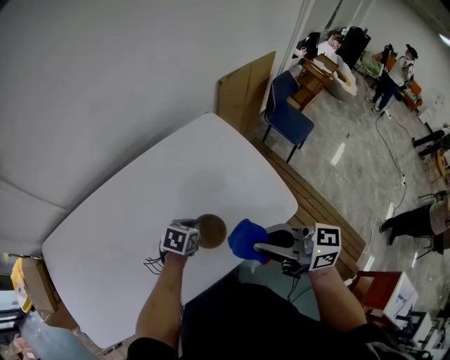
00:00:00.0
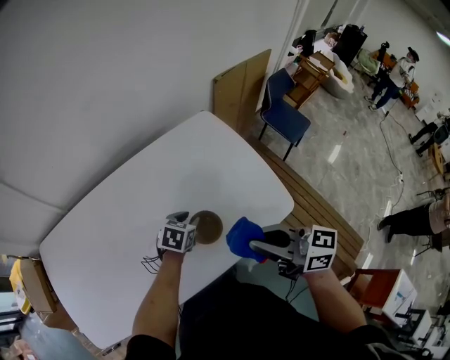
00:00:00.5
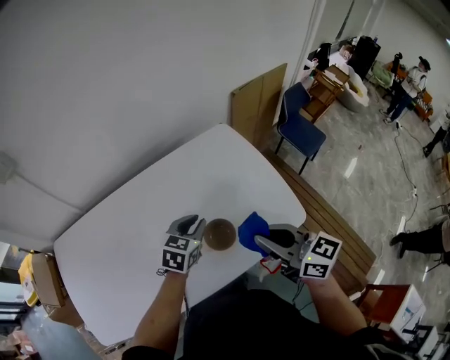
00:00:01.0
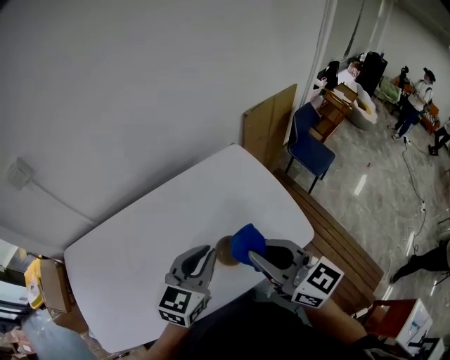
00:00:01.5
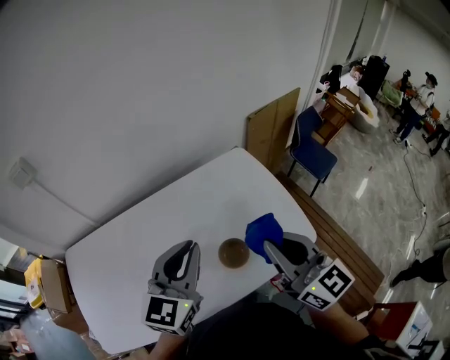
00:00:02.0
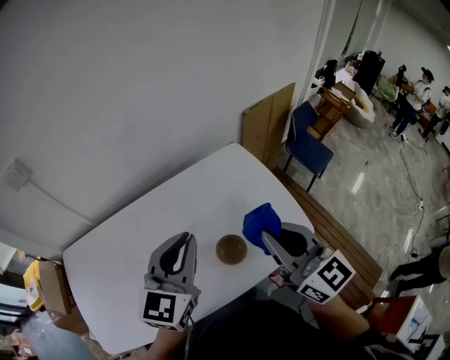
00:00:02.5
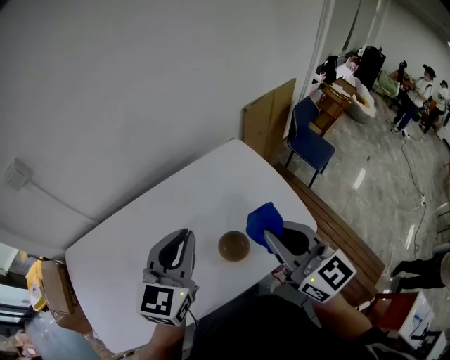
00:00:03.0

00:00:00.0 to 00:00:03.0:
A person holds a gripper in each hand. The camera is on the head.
00:00:00.0 to 00:00:01.5: The right gripper goes roughly 5 cm upward, and rotates some 30 degrees. Meanwhile the left gripper moves upward, roughly 25 cm, tilts its fingers roughly 30 degrees upward, and opens, then closes again.
00:00:01.5 to 00:00:03.0: The left gripper moves upward and to the left, roughly 10 cm.

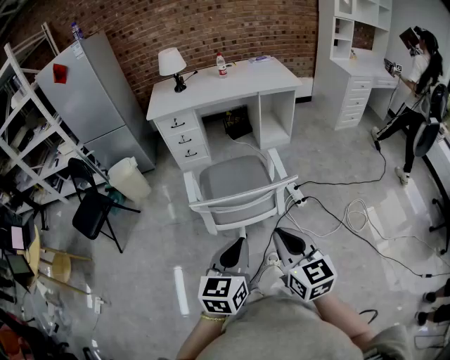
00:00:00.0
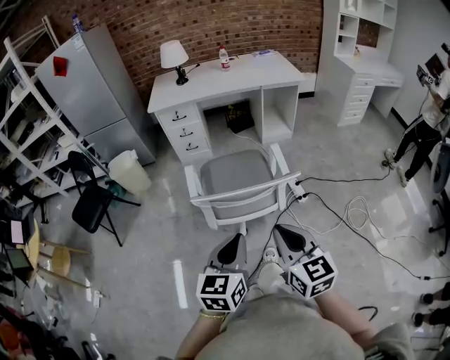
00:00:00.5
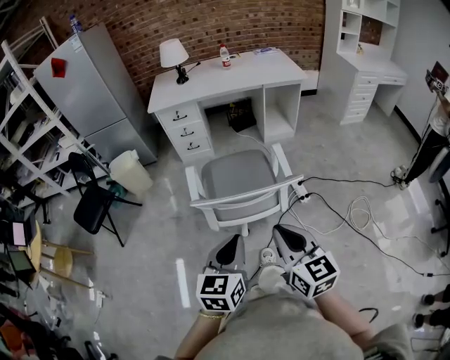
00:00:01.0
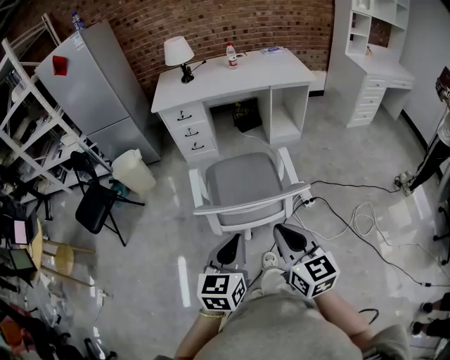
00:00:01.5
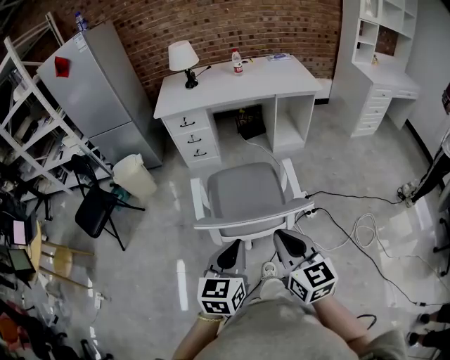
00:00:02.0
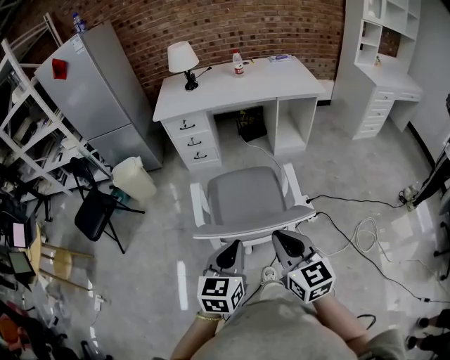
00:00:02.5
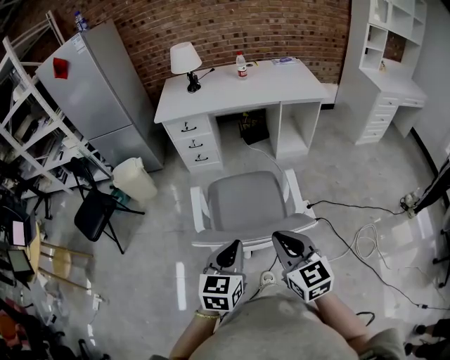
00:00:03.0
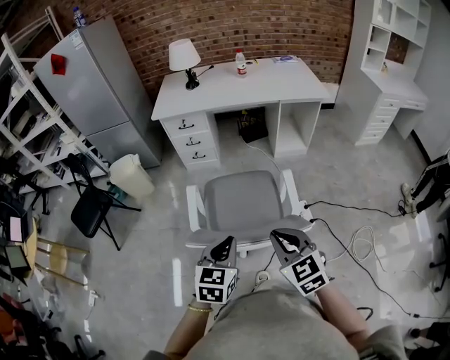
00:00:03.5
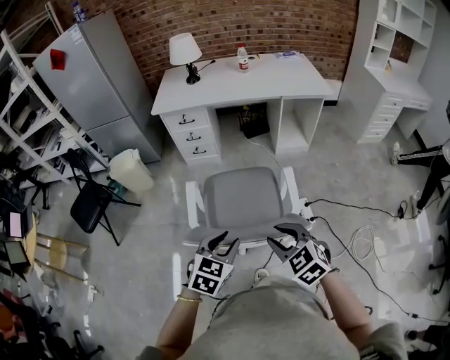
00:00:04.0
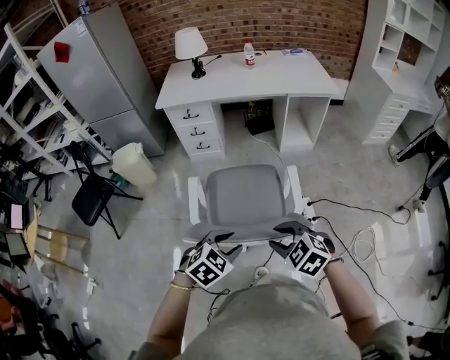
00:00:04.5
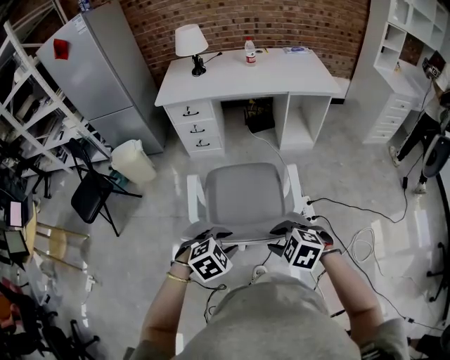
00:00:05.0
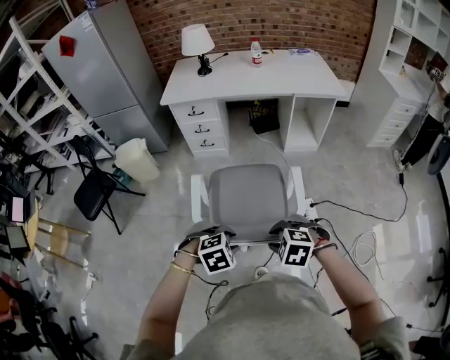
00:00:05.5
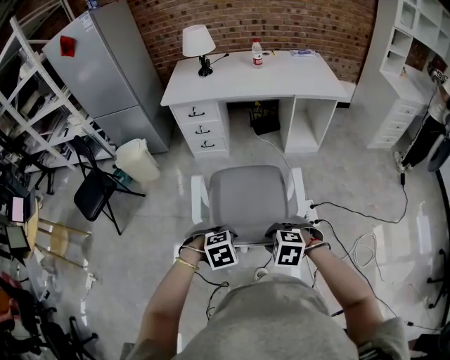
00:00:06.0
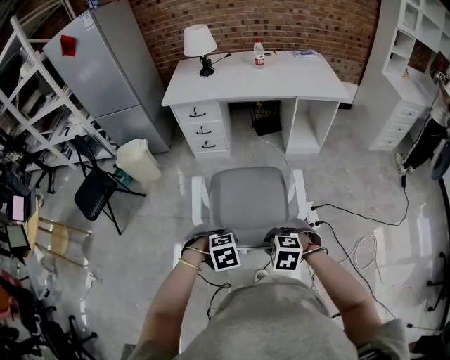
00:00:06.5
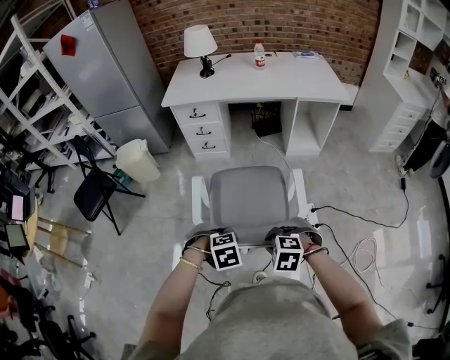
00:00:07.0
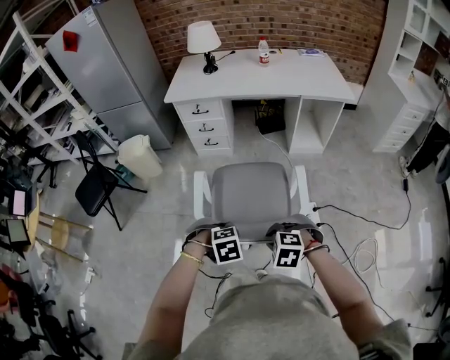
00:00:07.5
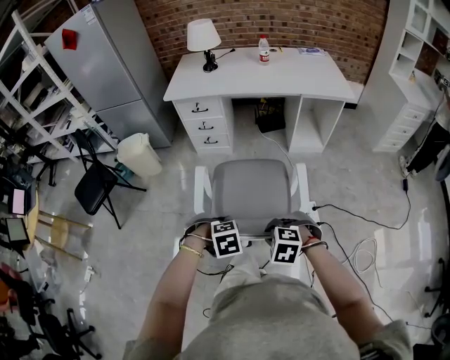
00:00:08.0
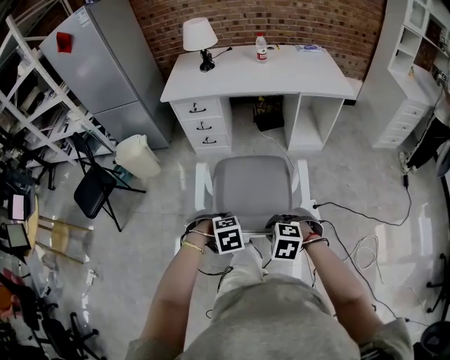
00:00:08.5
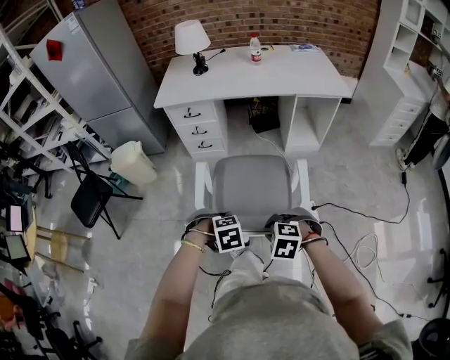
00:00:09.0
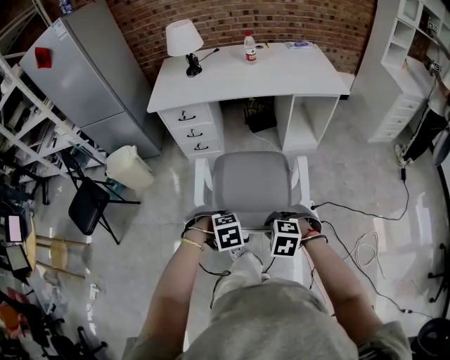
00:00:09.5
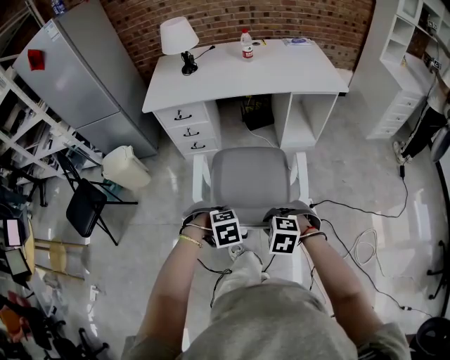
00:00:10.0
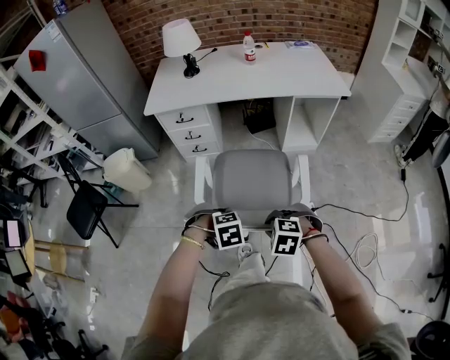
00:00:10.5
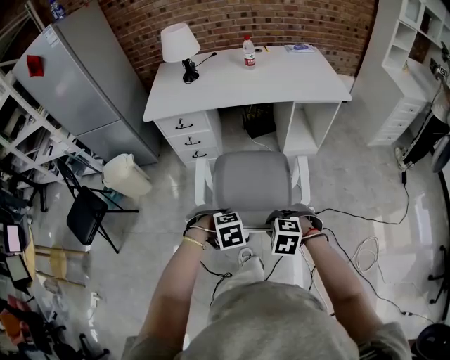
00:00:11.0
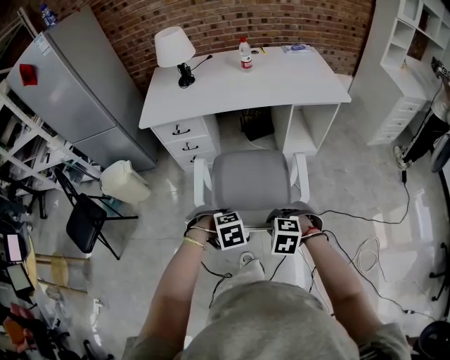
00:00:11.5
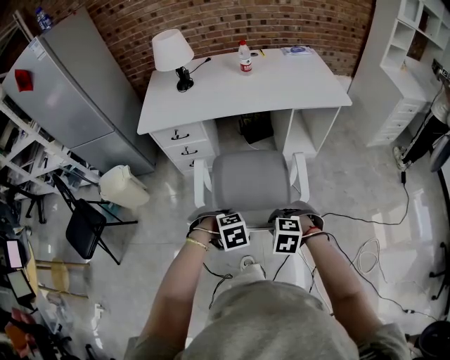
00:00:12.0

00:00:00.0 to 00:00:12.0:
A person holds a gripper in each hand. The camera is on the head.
00:00:00.0 to 00:00:02.0: Both grippers move forward, approximately 10 cm.
00:00:02.0 to 00:00:04.0: Both grippers move forward and downward, roughly 10 cm. The right gripper changes its angle by roughly 40 degrees, and opens up. Meanwhile the left gripper swivels about 30 degrees, and opens.
00:00:04.0 to 00:00:06.0: Both grippers move downward, some 10 cm. The right gripper changes its angle by some 40 degrees. Meanwhile the left gripper tips its fingers downward by some 40 degrees.
00:00:06.0 to 00:00:08.0: The grippers make only small movements.
00:00:08.0 to 00:00:10.0: The right gripper moves some 10 cm; the left gripper changes place by roughly 10 cm.
00:00:10.0 to 00:00:12.0: The left gripper moves some 10 cm. Meanwhile the right gripper ends up some 10 cm from where it was.

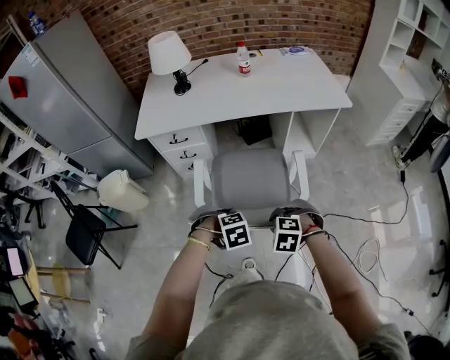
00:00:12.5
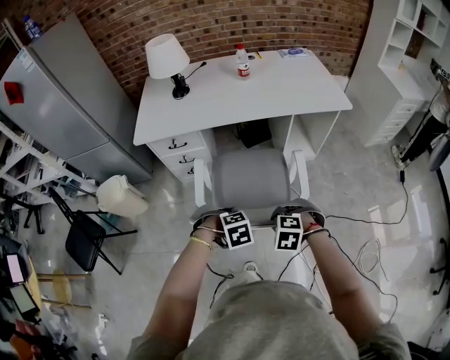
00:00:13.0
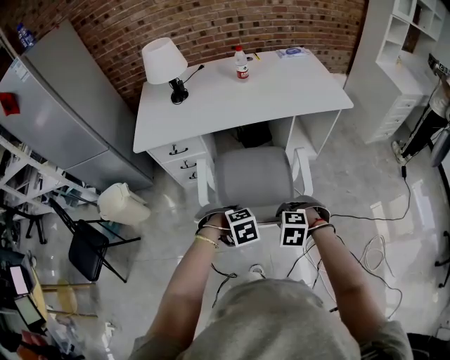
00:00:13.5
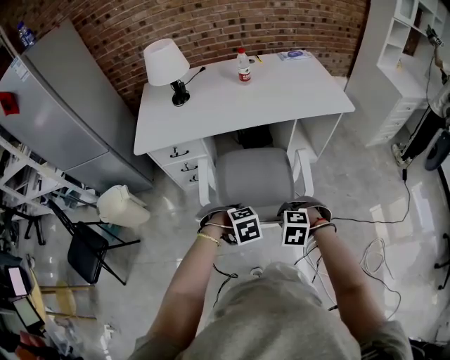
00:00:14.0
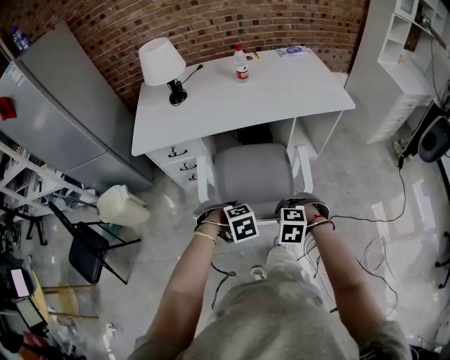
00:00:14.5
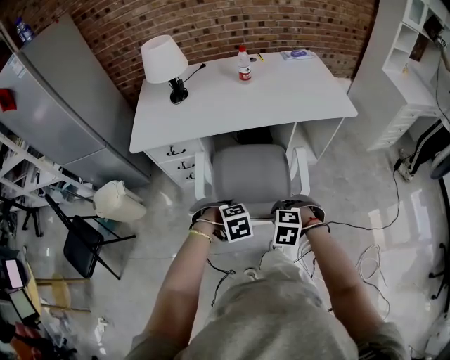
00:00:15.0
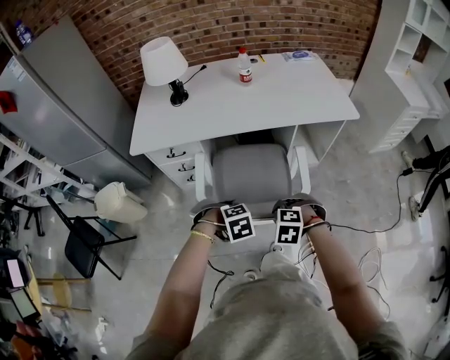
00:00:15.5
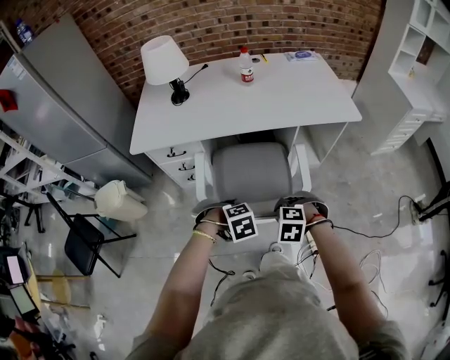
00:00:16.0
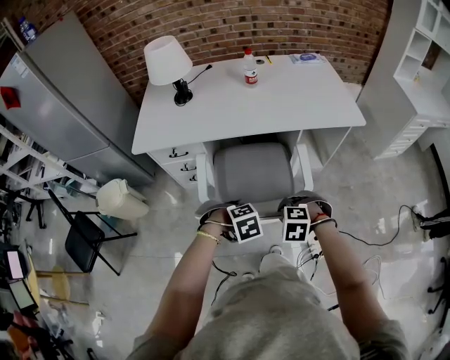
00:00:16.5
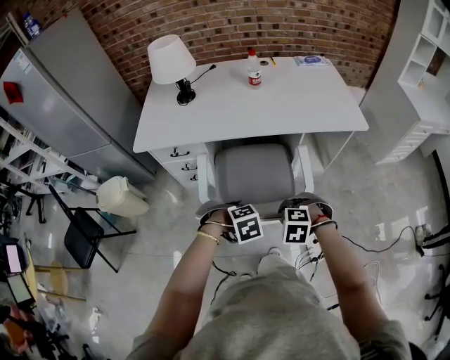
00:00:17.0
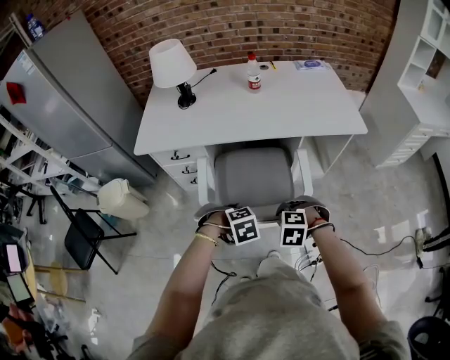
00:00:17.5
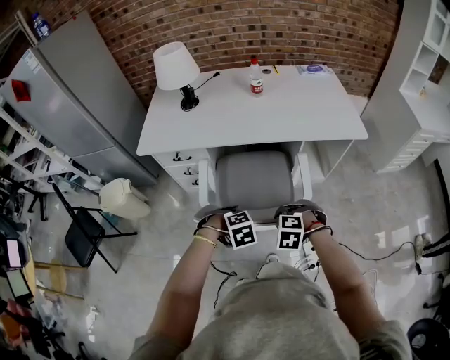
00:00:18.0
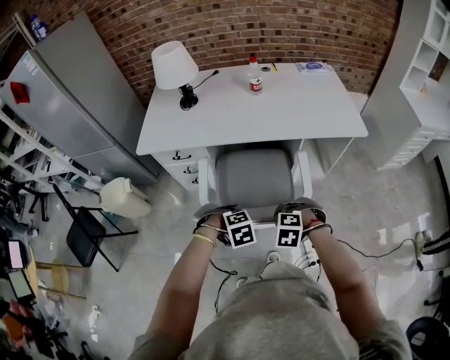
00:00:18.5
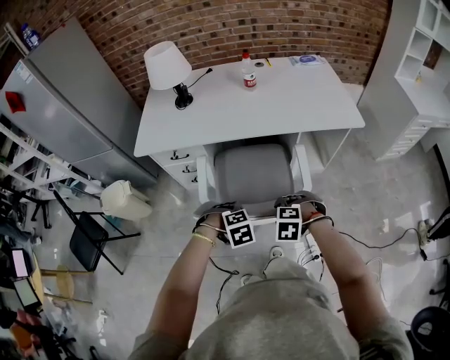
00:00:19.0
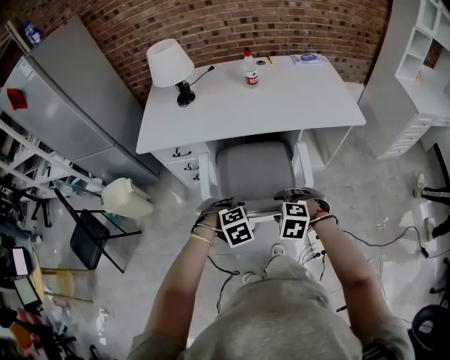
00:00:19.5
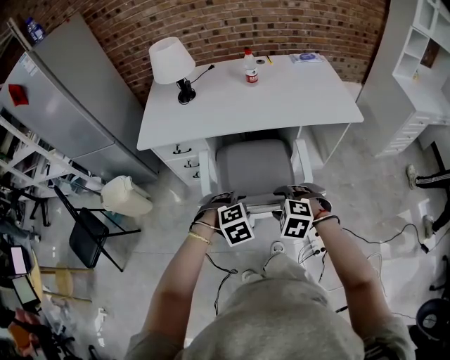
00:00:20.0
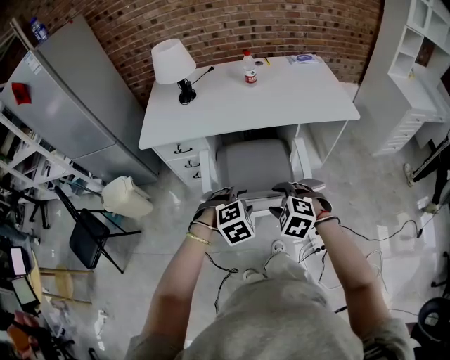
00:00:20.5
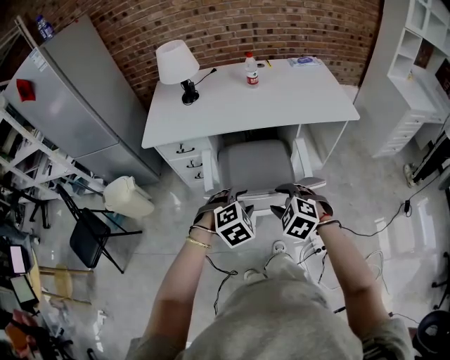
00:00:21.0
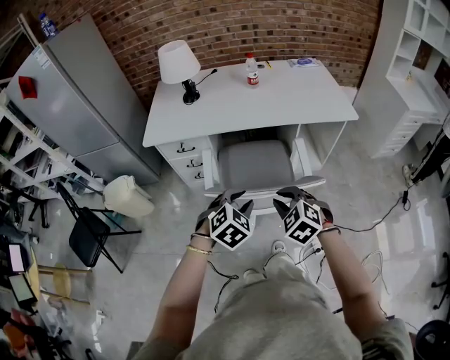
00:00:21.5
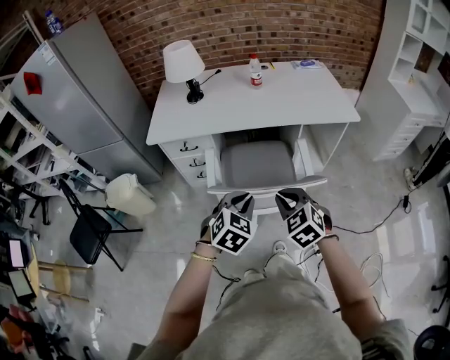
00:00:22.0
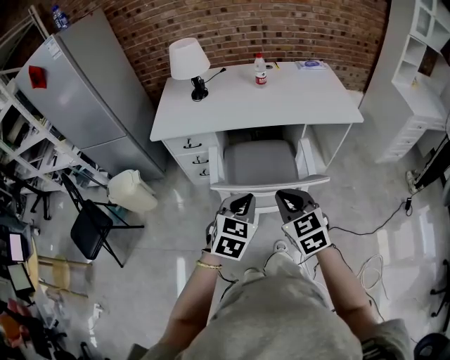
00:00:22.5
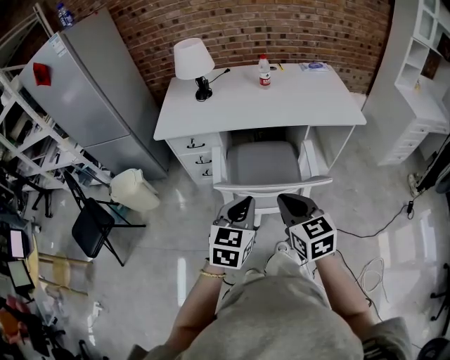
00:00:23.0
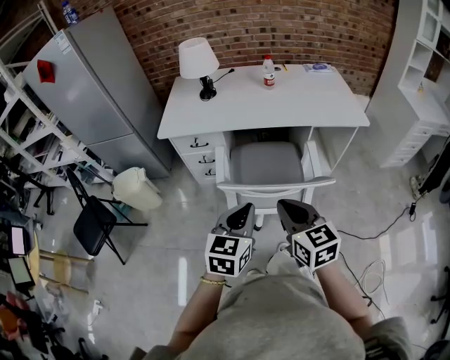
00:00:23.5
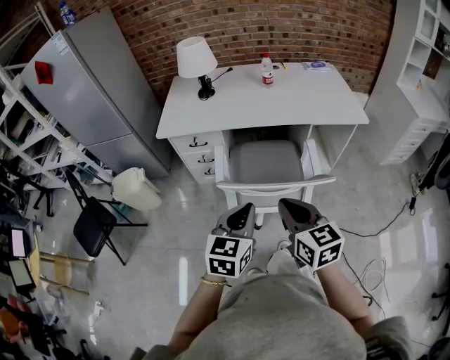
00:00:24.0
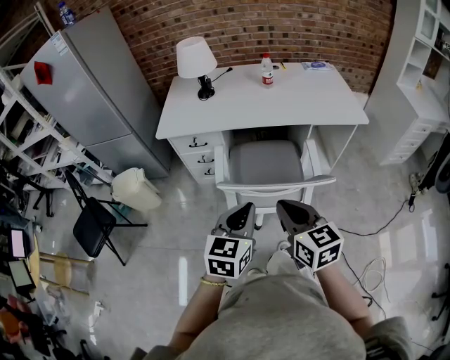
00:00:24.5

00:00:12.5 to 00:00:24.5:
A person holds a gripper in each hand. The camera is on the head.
00:00:12.5 to 00:00:14.5: The right gripper moves approximately 10 cm, while the left gripper shifts by about 10 cm.
00:00:14.5 to 00:00:16.5: The left gripper ends up roughly 5 cm from where it was; the right gripper changes place by roughly 10 cm.
00:00:16.5 to 00:00:18.5: Both grippers stay put.
00:00:18.5 to 00:00:20.5: Both grippers move upward, roughly 10 cm. The right gripper rotates roughly 20 degrees, and opens, while the left gripper changes its angle by approximately 20 degrees, and opens up.
00:00:20.5 to 00:00:22.5: The left gripper is displaced upward and backward by roughly 10 cm, rolls counterclockwise, seen from behind, by some 40 degrees, and closes up. Meanwhile the right gripper travels upward by approximately 10 cm, swivels some 40 degrees, and closes its fingers.
00:00:22.5 to 00:00:24.5: The left gripper ends up approximately 5 cm from where it was. The right gripper changes its angle by about 20 degrees.
